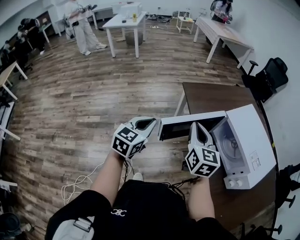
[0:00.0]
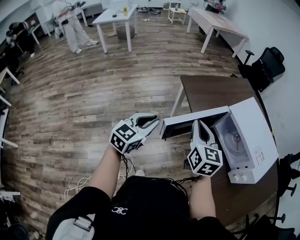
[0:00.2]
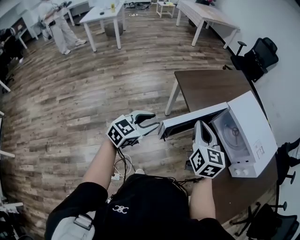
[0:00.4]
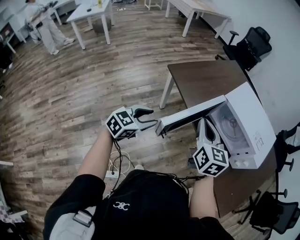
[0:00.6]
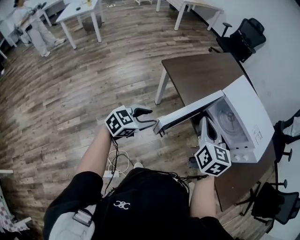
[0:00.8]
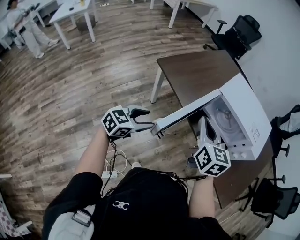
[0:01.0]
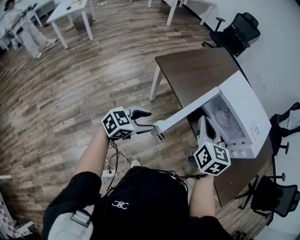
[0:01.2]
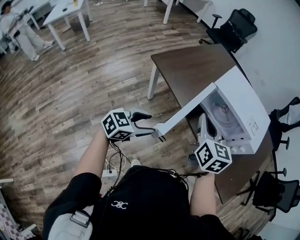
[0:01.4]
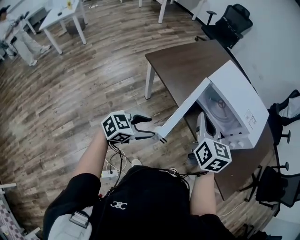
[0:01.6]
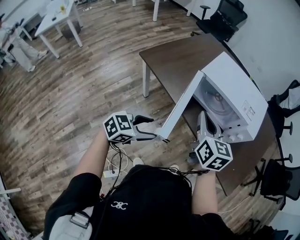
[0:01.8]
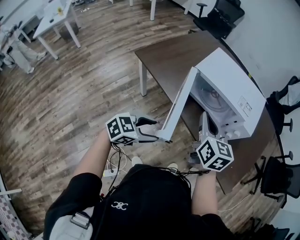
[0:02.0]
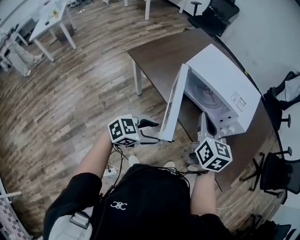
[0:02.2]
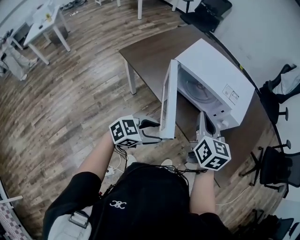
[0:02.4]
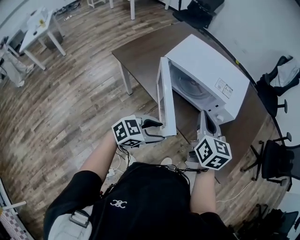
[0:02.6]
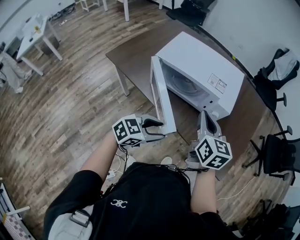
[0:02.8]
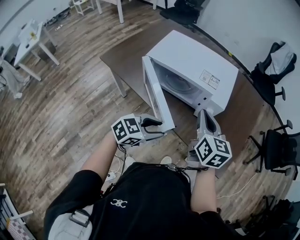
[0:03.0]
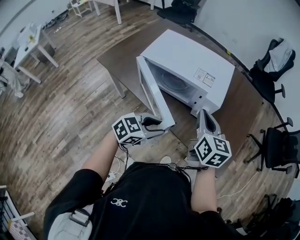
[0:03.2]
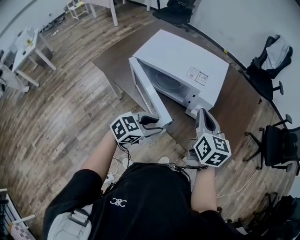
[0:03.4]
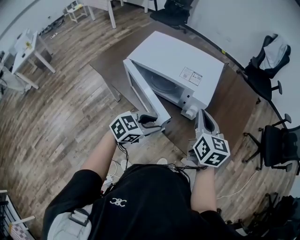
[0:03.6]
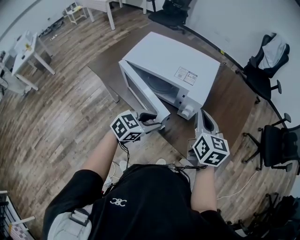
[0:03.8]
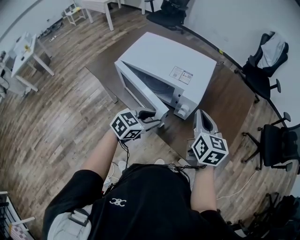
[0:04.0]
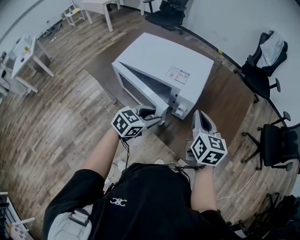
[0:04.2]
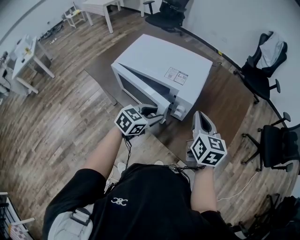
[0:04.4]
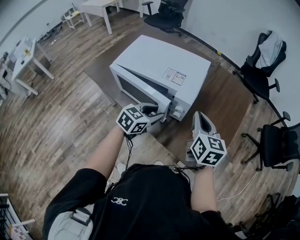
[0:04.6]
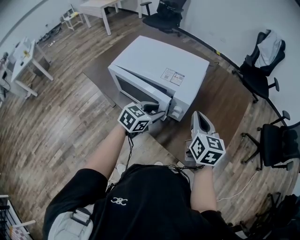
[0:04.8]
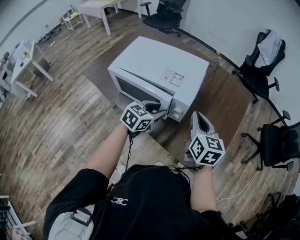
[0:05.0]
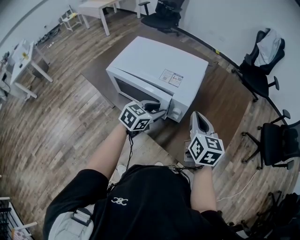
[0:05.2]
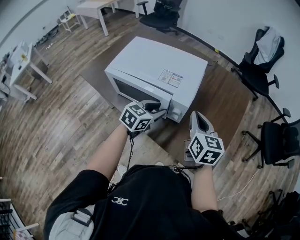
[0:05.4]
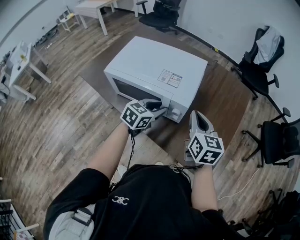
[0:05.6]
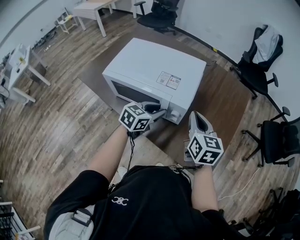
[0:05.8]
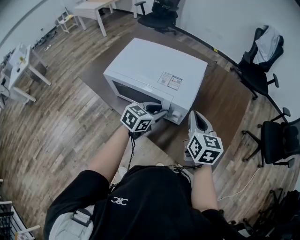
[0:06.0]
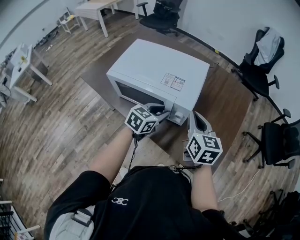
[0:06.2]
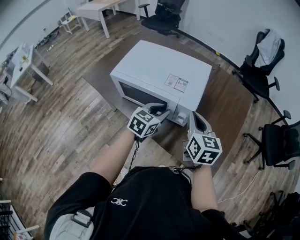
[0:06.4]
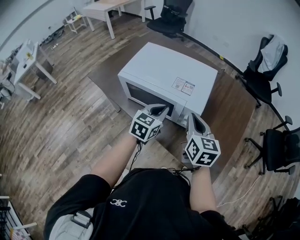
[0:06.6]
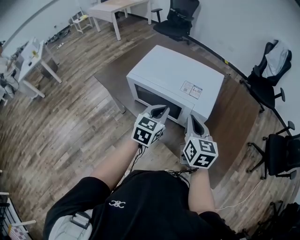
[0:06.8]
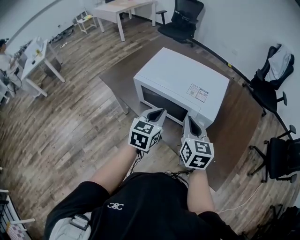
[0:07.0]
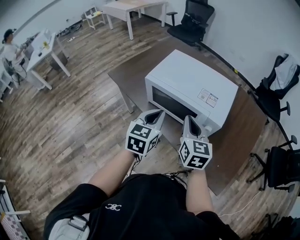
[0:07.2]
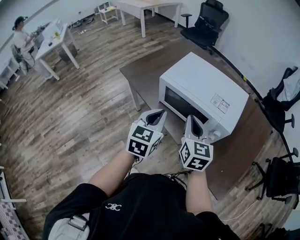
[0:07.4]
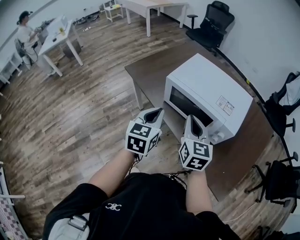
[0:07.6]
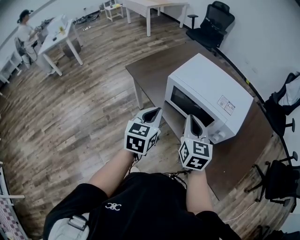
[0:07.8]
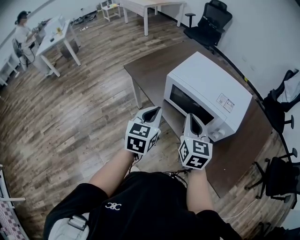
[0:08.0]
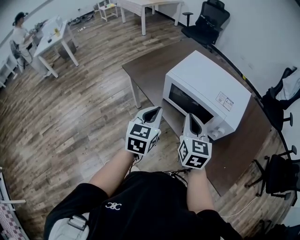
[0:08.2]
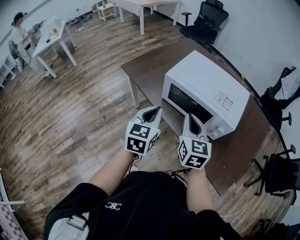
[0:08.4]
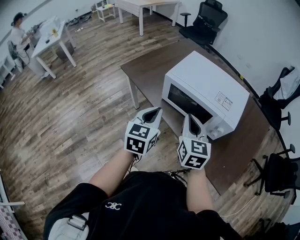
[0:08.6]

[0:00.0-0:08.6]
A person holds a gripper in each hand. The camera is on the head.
0:00.0 to 0:01.4: The right gripper moves about 5 cm, and turns by about 30 degrees, while the left gripper heads downward, covering approximately 10 cm, swivels approximately 60 degrees, and opens its fingers.
0:01.4 to 0:02.8: The two grippers go roughly 25 cm to the right.
0:02.8 to 0:04.4: The left gripper moves forward and to the right, some 20 cm. The right gripper goes approximately 15 cm to the right and forward.
0:04.4 to 0:05.8: The left gripper heads forward, covering approximately 5 cm.
0:05.8 to 0:07.2: The right gripper shifts some 20 cm to the left. Meanwhile the left gripper travels to the left, upward and backward by roughly 20 cm, swivels approximately 40 degrees, and closes its fingers.
0:07.2 to 0:08.6: The two grippers go some 10 cm to the left.

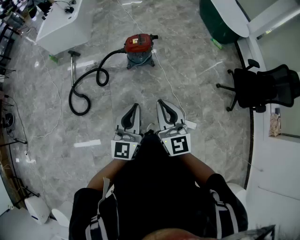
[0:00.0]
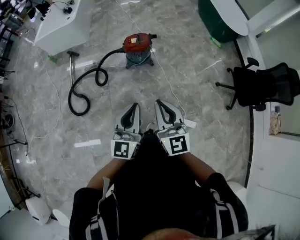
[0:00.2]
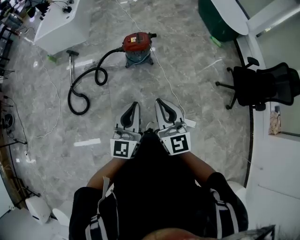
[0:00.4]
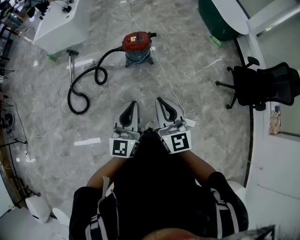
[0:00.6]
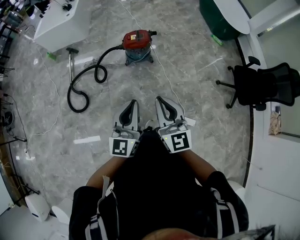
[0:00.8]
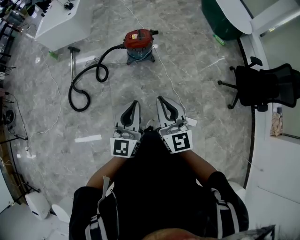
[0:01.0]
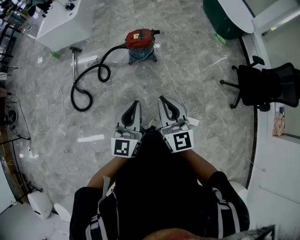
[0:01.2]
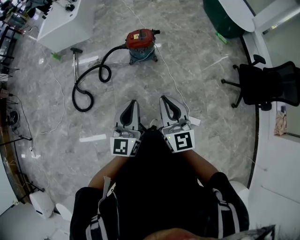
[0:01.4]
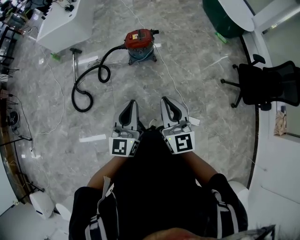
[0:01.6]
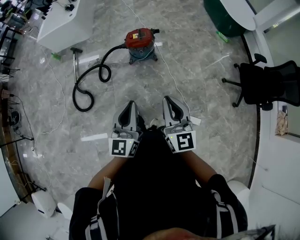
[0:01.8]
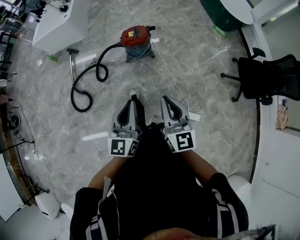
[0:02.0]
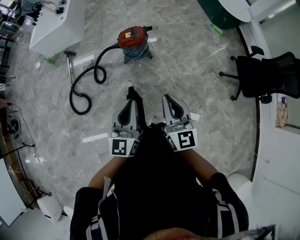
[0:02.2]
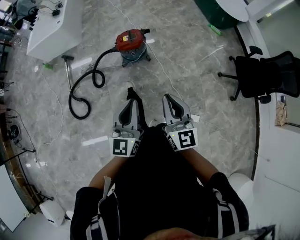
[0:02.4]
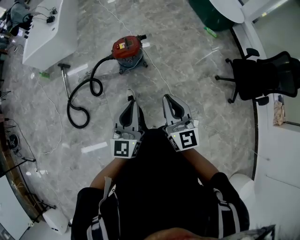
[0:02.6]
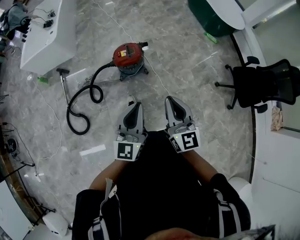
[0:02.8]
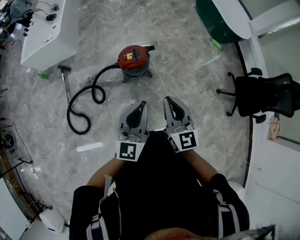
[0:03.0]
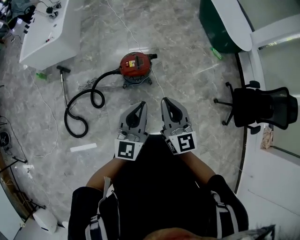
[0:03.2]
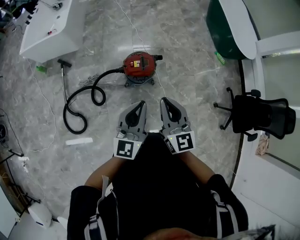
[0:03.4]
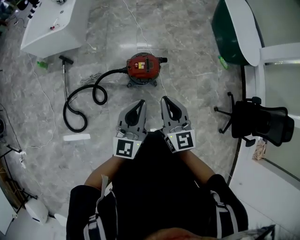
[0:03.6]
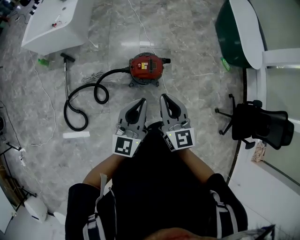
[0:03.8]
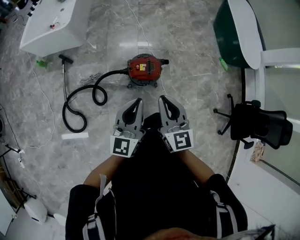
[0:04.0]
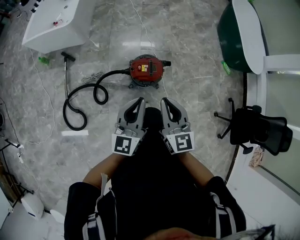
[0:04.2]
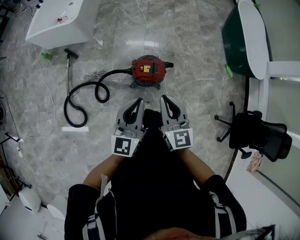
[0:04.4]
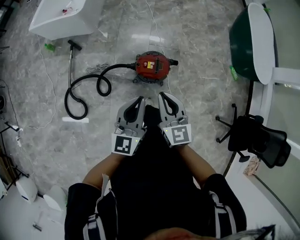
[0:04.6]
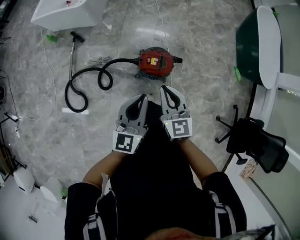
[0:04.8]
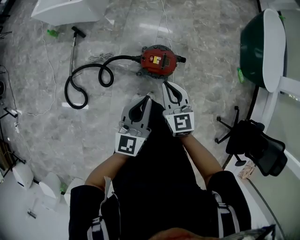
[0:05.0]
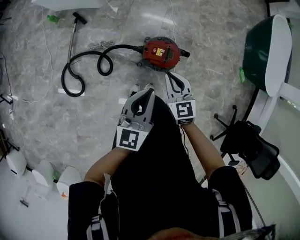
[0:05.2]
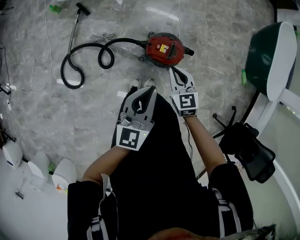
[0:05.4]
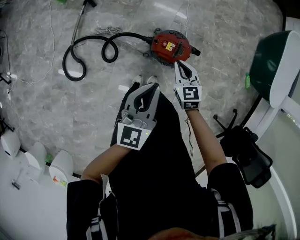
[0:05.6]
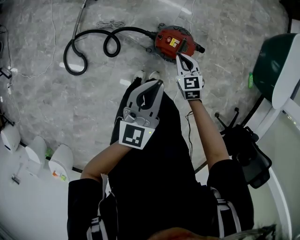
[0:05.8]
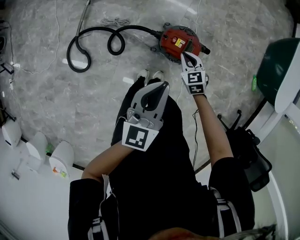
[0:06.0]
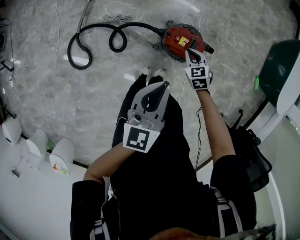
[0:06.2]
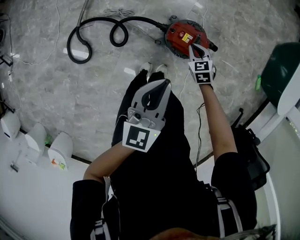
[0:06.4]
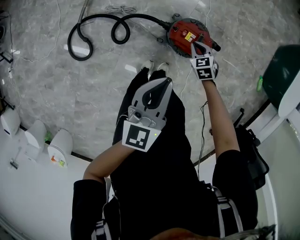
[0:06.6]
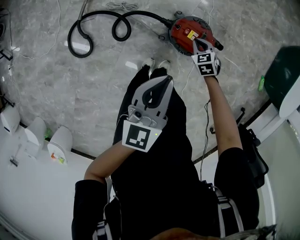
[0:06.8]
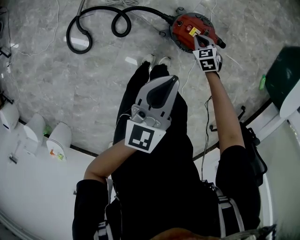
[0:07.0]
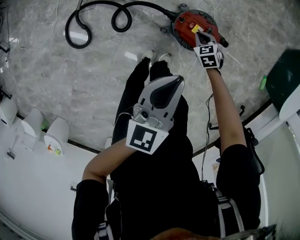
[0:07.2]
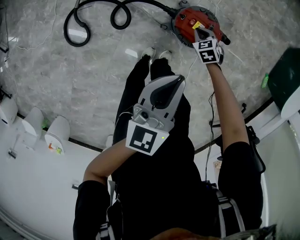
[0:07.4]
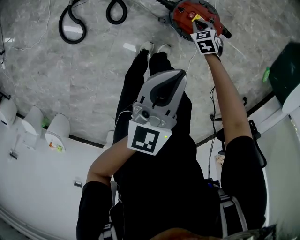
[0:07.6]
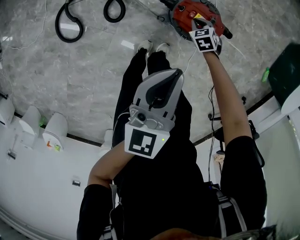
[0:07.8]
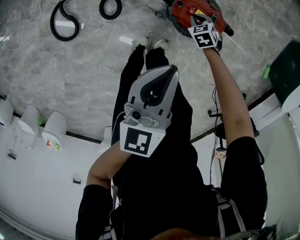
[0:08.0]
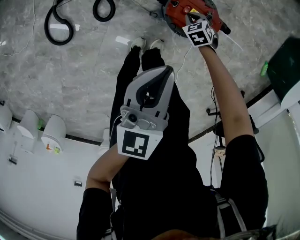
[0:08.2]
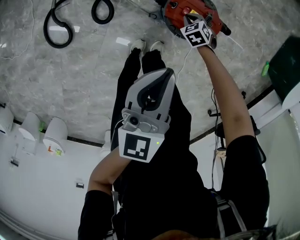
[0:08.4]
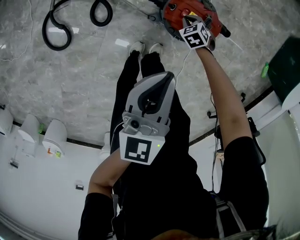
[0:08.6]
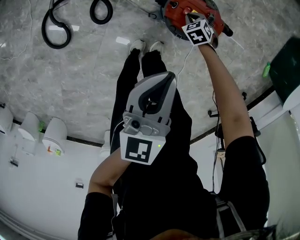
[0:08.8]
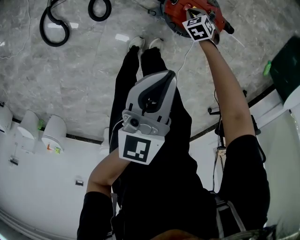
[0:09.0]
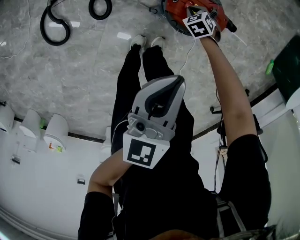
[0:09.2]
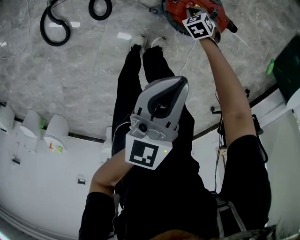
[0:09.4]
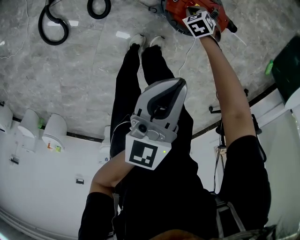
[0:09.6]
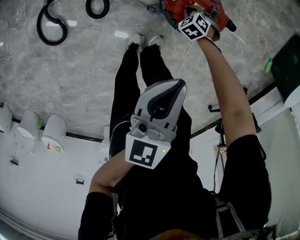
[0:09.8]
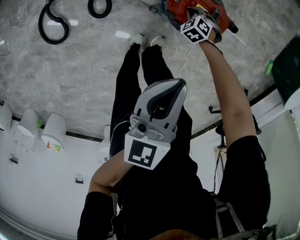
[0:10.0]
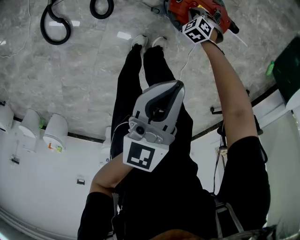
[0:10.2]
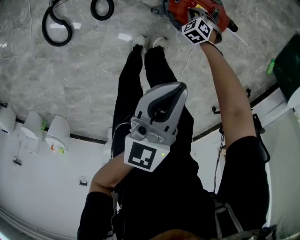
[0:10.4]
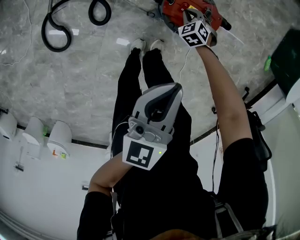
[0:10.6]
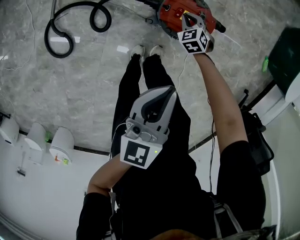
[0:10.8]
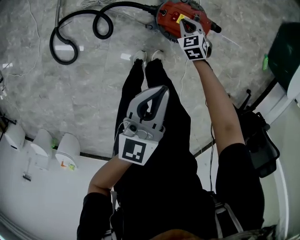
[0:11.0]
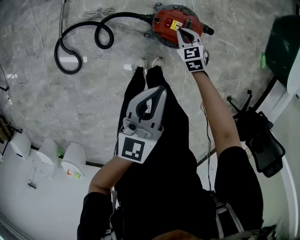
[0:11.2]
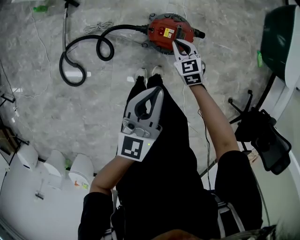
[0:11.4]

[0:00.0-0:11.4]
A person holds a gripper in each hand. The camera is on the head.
0:00.0 to 0:01.4: The grippers move only a little.
0:01.4 to 0:02.8: The grippers both shift forward by about 20 cm.
0:02.8 to 0:04.2: Both grippers travel together forward and to the left, approximately 30 cm.
0:04.2 to 0:05.6: The right gripper shifts roughly 25 cm downward and forward, and swivels about 30 degrees. Meanwhile the left gripper is displaced downward and forward by some 10 cm.
0:05.6 to 0:07.2: The left gripper heads downward, covering roughly 5 cm, while the right gripper travels downward by approximately 25 cm, and changes its angle by about 30 degrees.
0:07.2 to 0:08.6: The left gripper is displaced downward by some 10 cm. Meanwhile the right gripper goes approximately 15 cm downward.
0:08.6 to 0:10.0: The grippers stay close to where they were, moving slightly.
0:10.0 to 0:11.4: The right gripper moves upward, roughly 30 cm, and rotates some 50 degrees. Meanwhile the left gripper is displaced upward by some 15 cm.

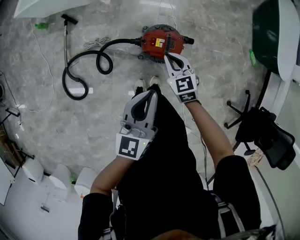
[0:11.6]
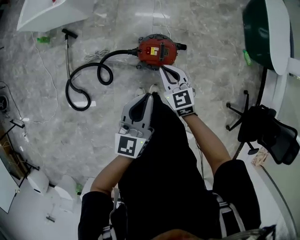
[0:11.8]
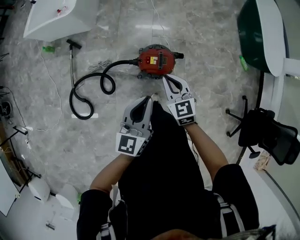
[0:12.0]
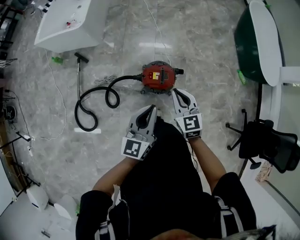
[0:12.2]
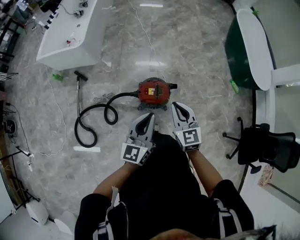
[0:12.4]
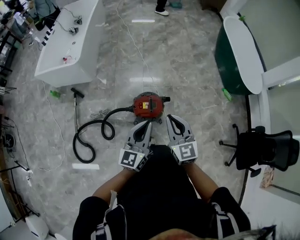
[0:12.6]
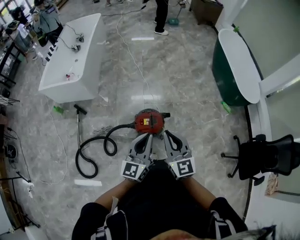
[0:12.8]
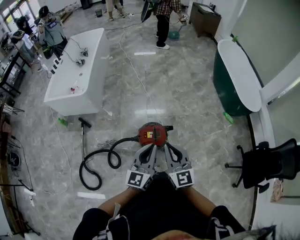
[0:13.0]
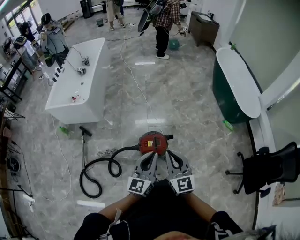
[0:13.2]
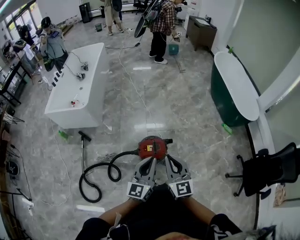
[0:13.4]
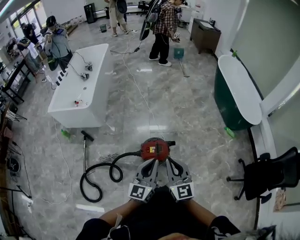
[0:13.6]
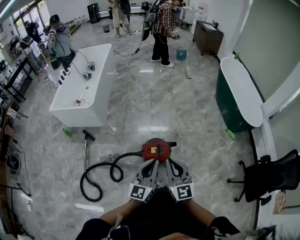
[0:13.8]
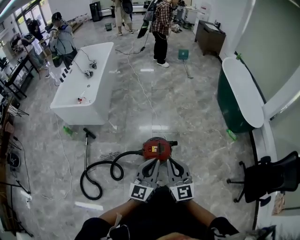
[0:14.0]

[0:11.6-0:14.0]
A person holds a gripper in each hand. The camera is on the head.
0:11.6 to 0:12.8: The left gripper goes about 15 cm upward and to the right. Meanwhile the right gripper is displaced upward and backward by roughly 35 cm, and points its fingers about 30 degrees further upward.
0:12.8 to 0:14.0: The grippers move only a little.

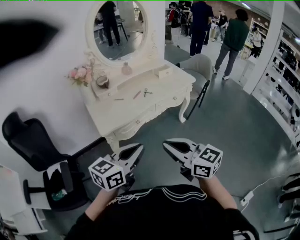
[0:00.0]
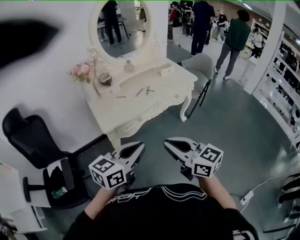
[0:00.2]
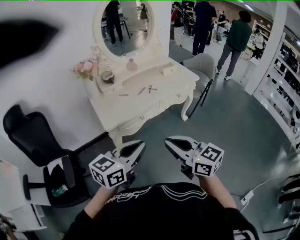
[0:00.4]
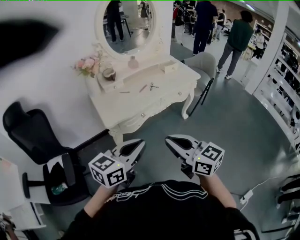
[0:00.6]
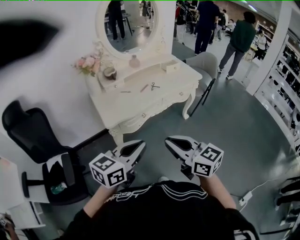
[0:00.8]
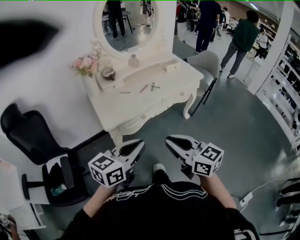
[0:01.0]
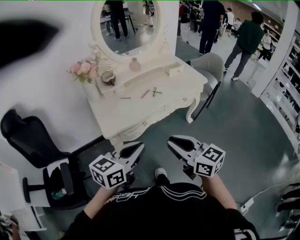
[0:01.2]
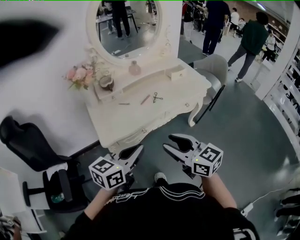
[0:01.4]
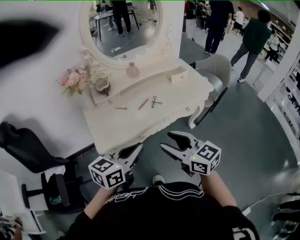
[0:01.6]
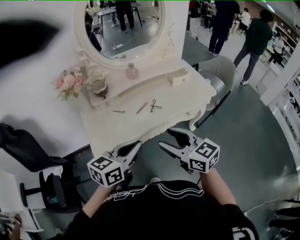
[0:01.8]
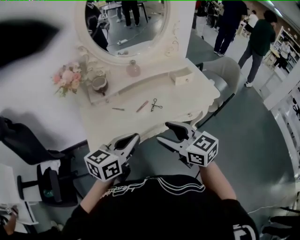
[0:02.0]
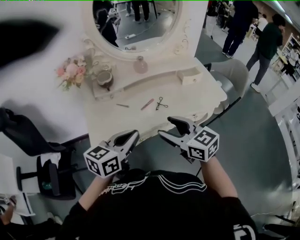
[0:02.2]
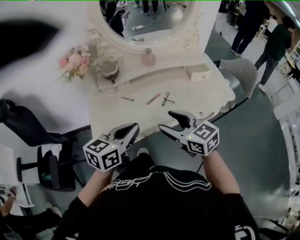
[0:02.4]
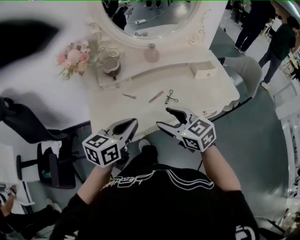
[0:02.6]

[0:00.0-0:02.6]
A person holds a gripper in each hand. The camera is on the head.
0:00.0 to 0:01.2: The two grippers go roughly 10 cm forward.
0:01.2 to 0:02.6: Both grippers travel together forward, some 30 cm. The right gripper rotates approximately 30 degrees, and opens up. Meanwhile the left gripper changes its angle by approximately 20 degrees.
